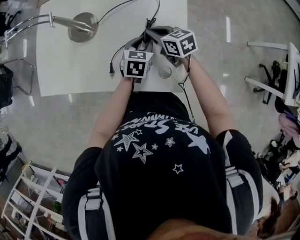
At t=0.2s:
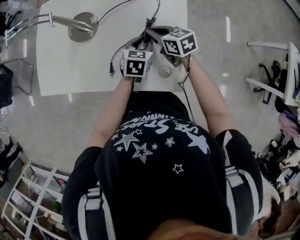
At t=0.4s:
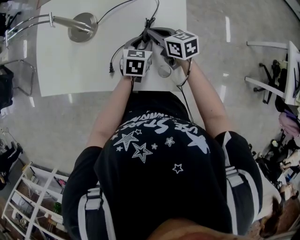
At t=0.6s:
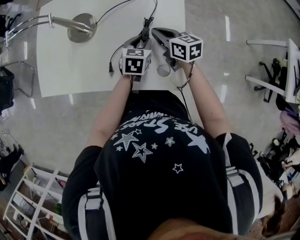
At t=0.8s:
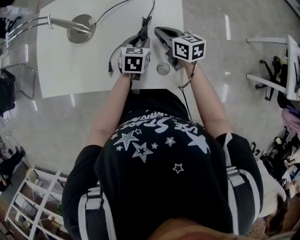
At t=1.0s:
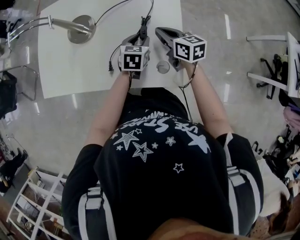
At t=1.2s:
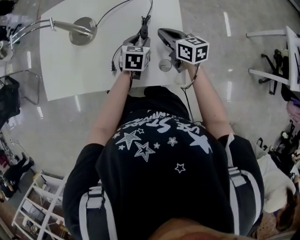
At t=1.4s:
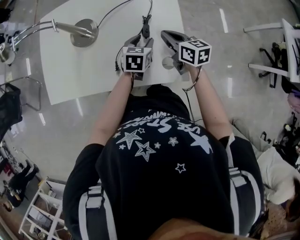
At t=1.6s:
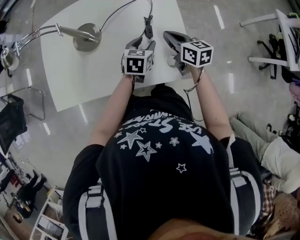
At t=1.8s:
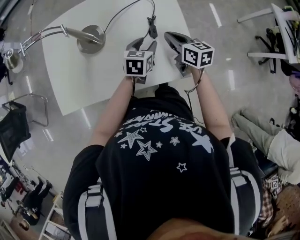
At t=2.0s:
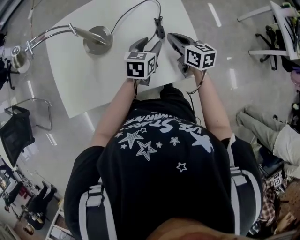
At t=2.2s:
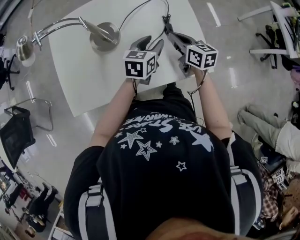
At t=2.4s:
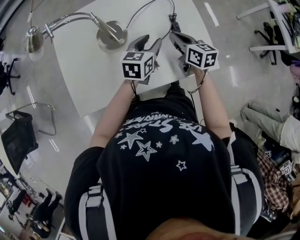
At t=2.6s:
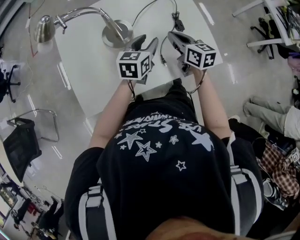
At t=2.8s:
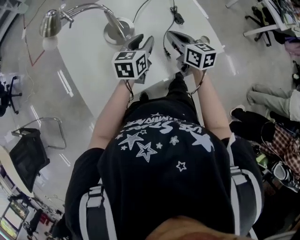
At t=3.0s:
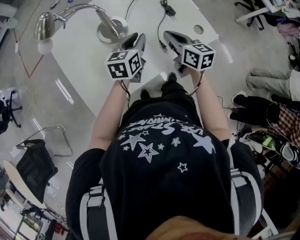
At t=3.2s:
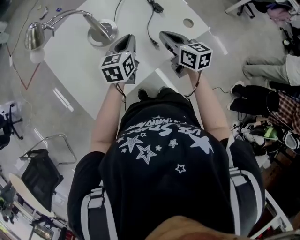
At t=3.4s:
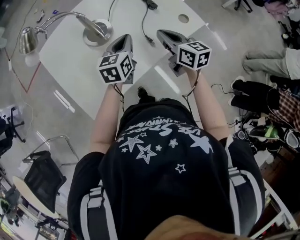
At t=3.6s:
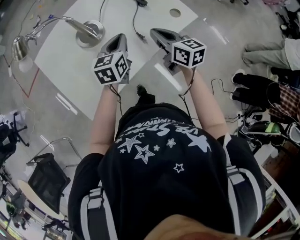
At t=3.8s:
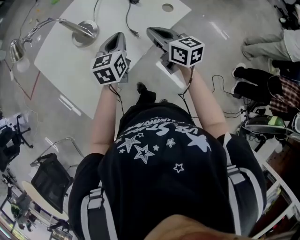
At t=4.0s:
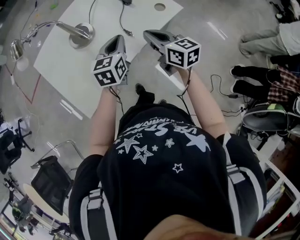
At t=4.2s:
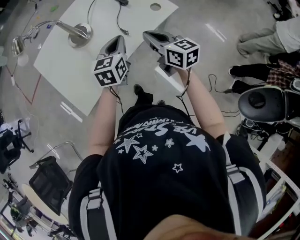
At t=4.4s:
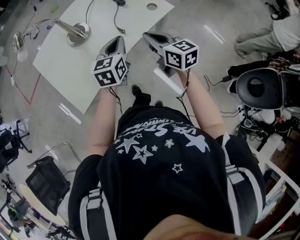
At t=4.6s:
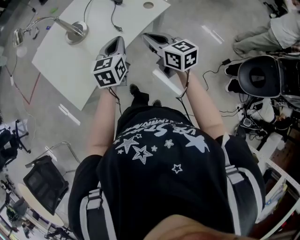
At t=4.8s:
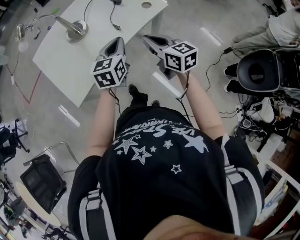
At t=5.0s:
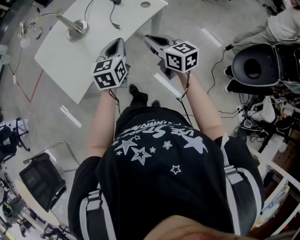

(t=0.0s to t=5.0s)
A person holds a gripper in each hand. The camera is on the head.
t=0.0s - t=1.6s: The right gripper is displaced backward by approximately 5 cm, and swivels about 30 degrees.
t=1.6s - t=3.4s: The right gripper ends up roughly 25 cm from where it was, and changes its angle by approximately 30 degrees, while the left gripper changes place by about 25 cm, turns by approximately 20 degrees, and closes up.
t=3.4s - t=5.0s: The left gripper heads backward and to the right, covering some 20 cm; the right gripper heads backward, covering about 20 cm.

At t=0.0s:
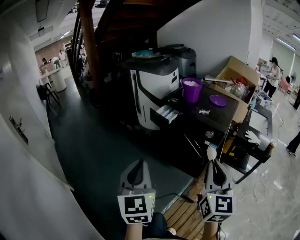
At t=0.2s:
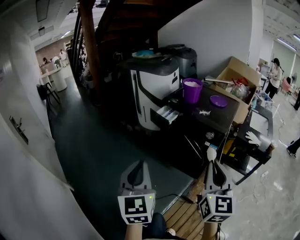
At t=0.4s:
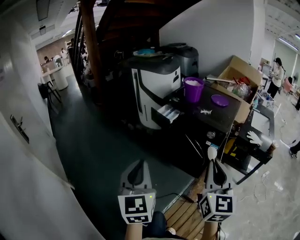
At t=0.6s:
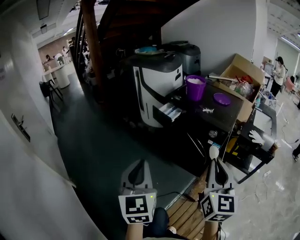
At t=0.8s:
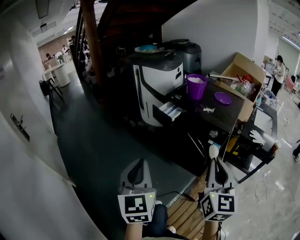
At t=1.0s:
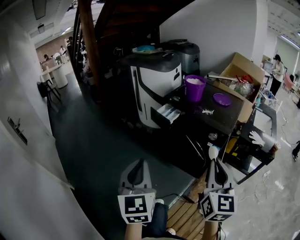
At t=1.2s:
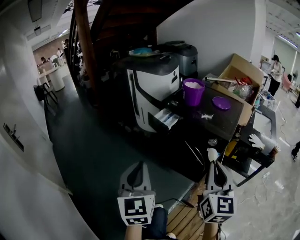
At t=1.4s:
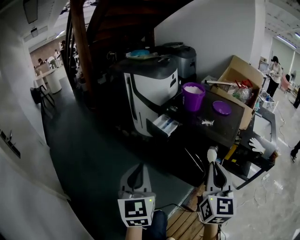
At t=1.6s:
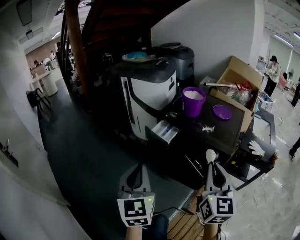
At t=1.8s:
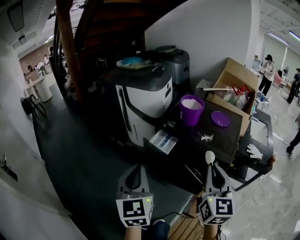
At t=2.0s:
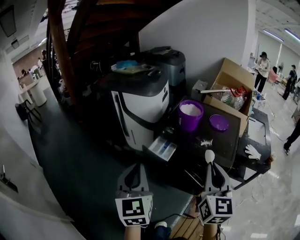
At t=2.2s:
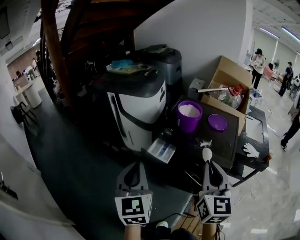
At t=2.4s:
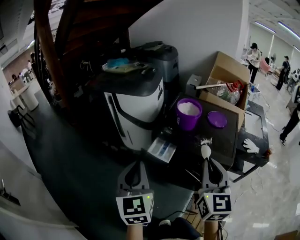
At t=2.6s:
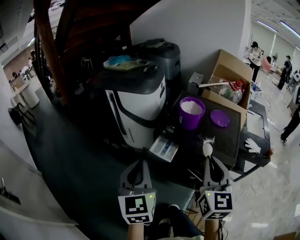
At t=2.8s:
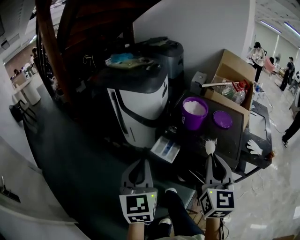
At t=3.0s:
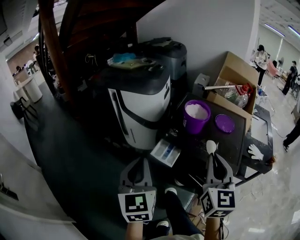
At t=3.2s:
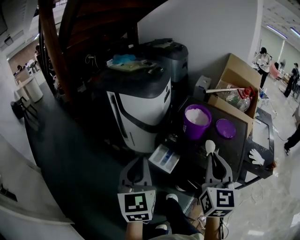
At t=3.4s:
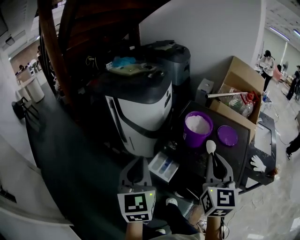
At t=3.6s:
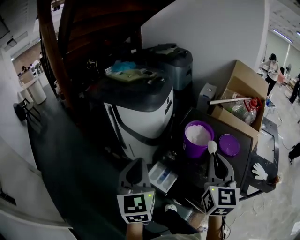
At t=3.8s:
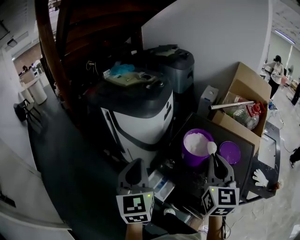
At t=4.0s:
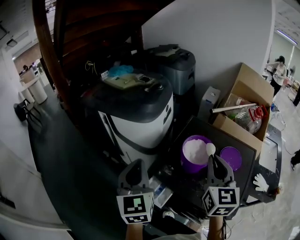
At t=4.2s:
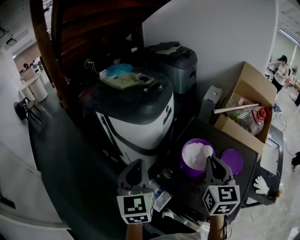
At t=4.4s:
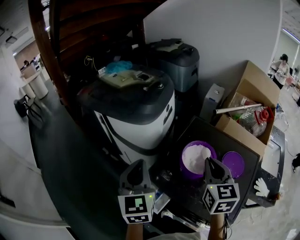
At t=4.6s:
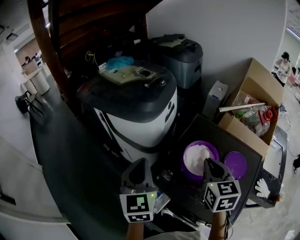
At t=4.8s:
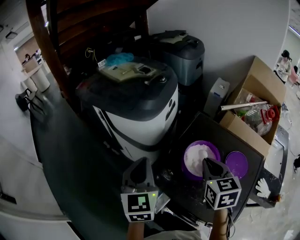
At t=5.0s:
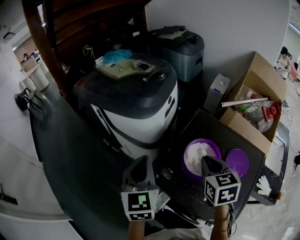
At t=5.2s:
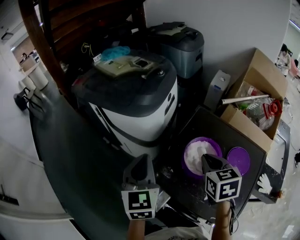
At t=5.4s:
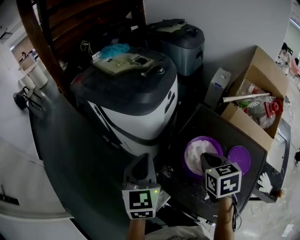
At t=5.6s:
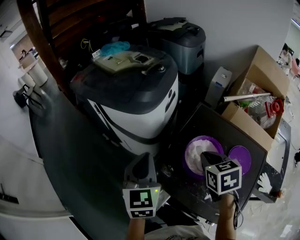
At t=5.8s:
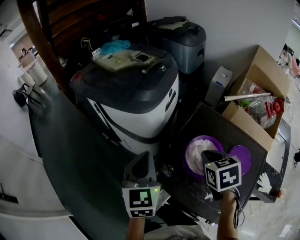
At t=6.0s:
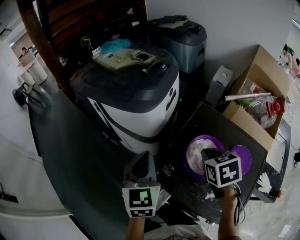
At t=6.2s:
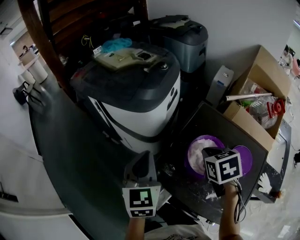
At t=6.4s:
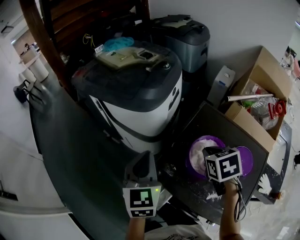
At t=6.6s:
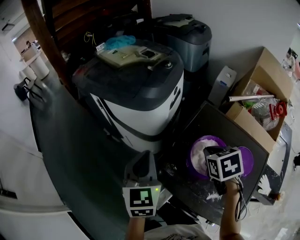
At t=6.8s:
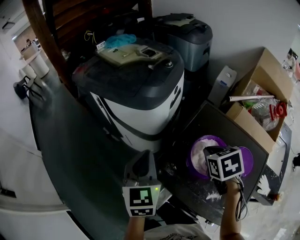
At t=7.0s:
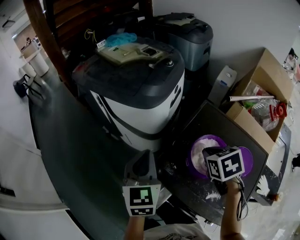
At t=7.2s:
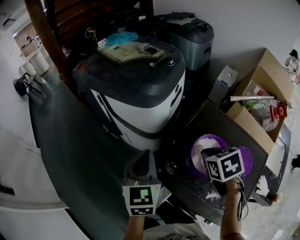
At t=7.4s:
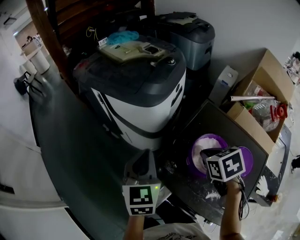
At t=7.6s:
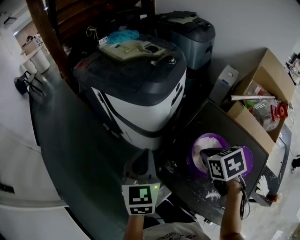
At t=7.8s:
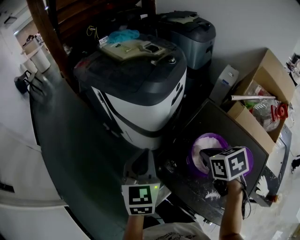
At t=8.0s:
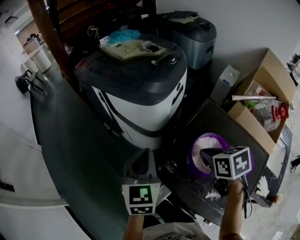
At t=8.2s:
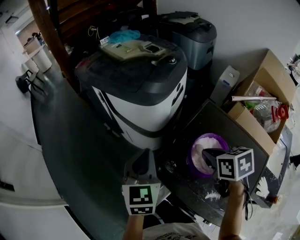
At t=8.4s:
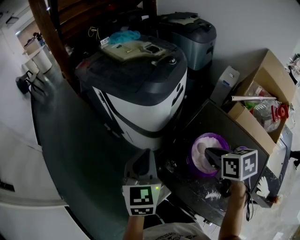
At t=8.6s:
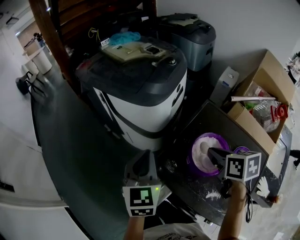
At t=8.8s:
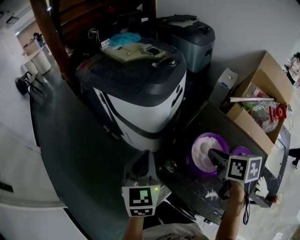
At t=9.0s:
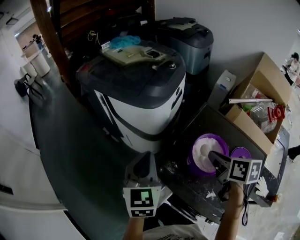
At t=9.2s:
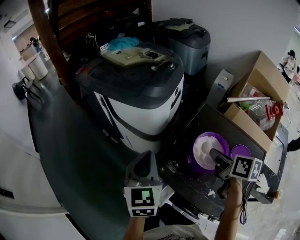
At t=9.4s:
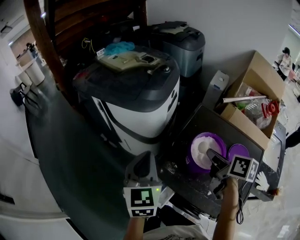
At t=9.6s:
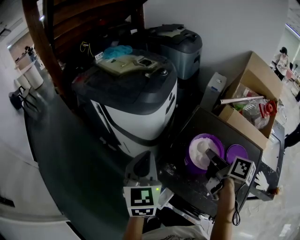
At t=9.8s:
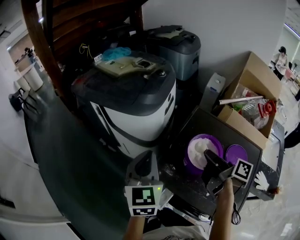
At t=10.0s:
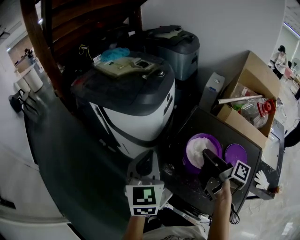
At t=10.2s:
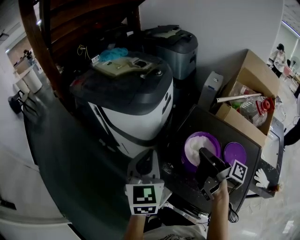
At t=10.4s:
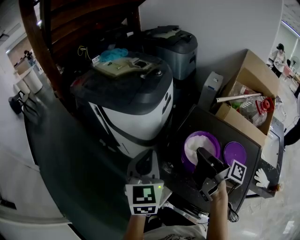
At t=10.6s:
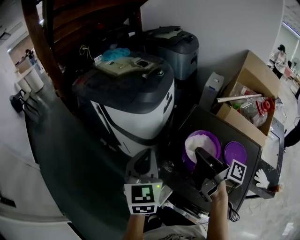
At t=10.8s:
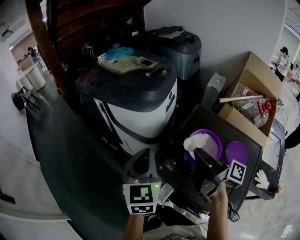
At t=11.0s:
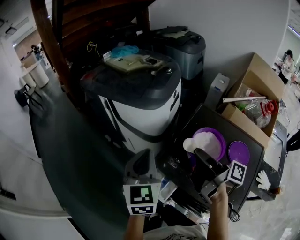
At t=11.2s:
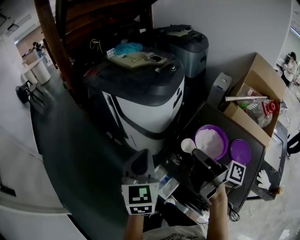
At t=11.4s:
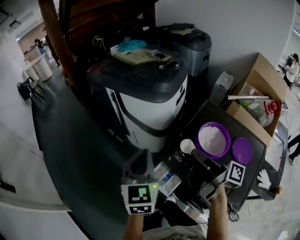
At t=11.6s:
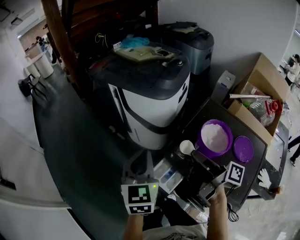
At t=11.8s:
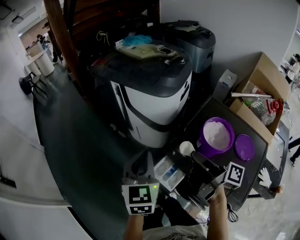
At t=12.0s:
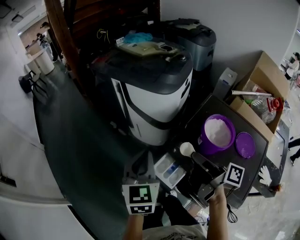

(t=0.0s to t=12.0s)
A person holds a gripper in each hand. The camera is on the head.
t=0.0s - t=1.6s: Both grippers travel together forward, some 20 cm.
t=1.6s - t=3.0s: The left gripper goes roughly 20 cm forward. Meanwhile the right gripper shifts approximately 20 cm forward and upward.
t=3.0s - t=4.4s: The grippers both shift forward by roughly 30 cm.
t=4.4s - t=6.0s: The right gripper travels downward and forward by about 10 cm, and points its fingers about 30 degrees further downward. The left gripper moves downward and forward, some 5 cm.
t=6.0s - t=7.6s: The grippers move only a little.
t=7.6s - t=9.0s: The right gripper changes its angle by about 40 degrees.
t=9.0s - t=10.4s: The right gripper tilts its fingers some 40 degrees upward.
t=10.4s - t=12.0s: Both grippers travel together to the left and backward, roughly 15 cm.

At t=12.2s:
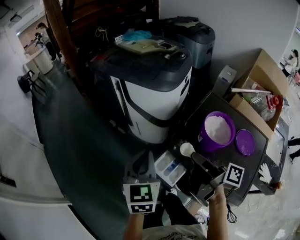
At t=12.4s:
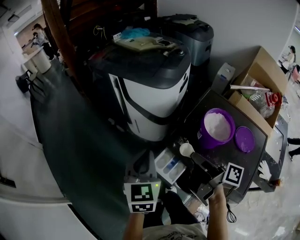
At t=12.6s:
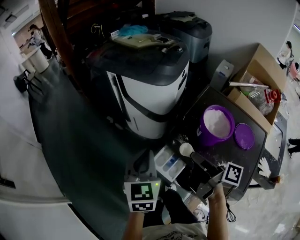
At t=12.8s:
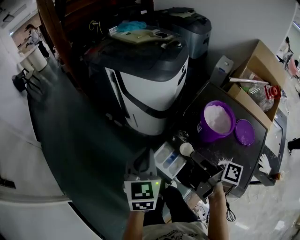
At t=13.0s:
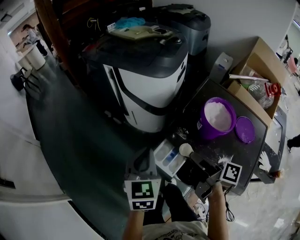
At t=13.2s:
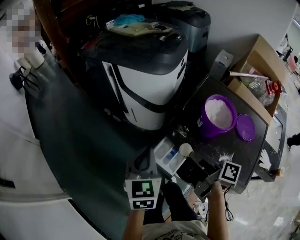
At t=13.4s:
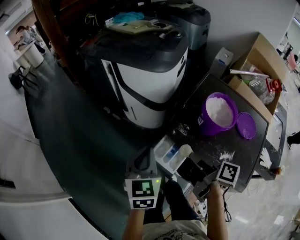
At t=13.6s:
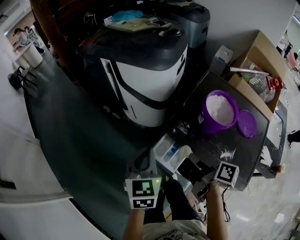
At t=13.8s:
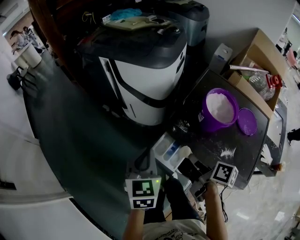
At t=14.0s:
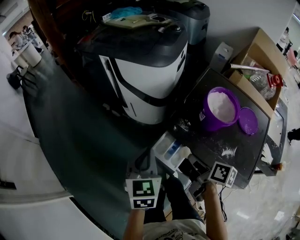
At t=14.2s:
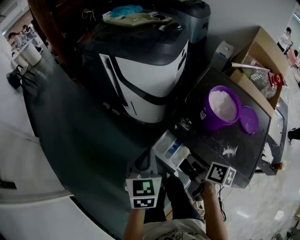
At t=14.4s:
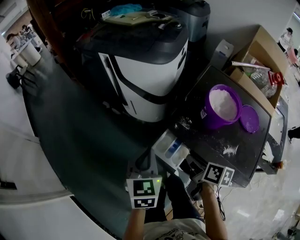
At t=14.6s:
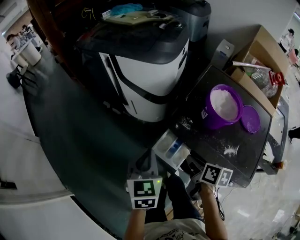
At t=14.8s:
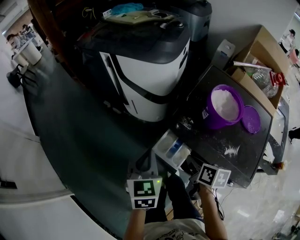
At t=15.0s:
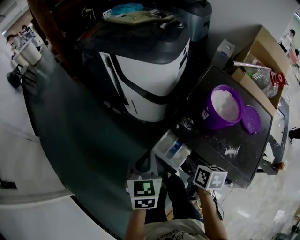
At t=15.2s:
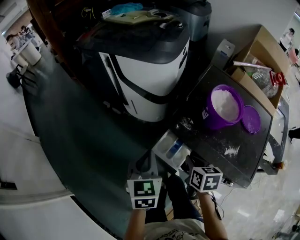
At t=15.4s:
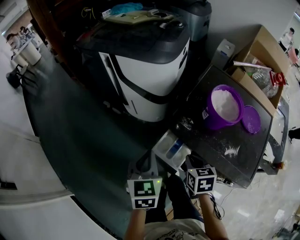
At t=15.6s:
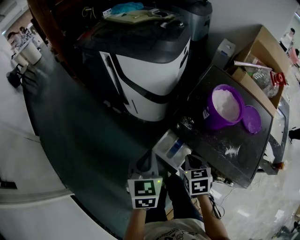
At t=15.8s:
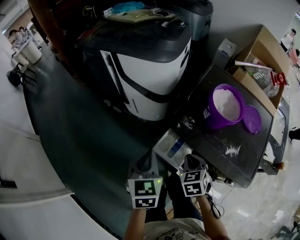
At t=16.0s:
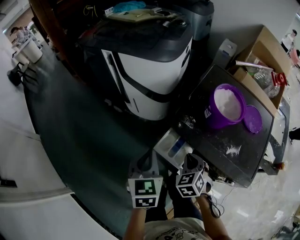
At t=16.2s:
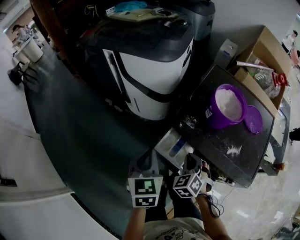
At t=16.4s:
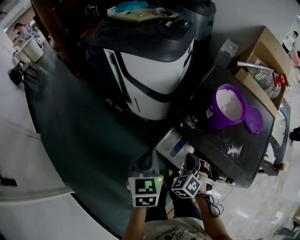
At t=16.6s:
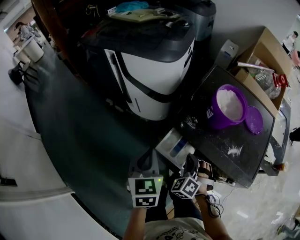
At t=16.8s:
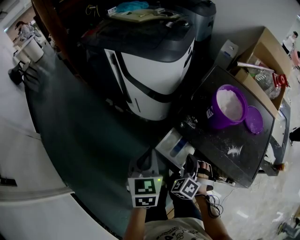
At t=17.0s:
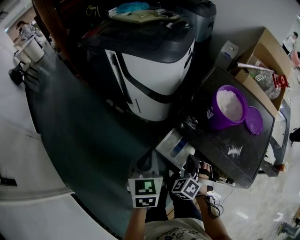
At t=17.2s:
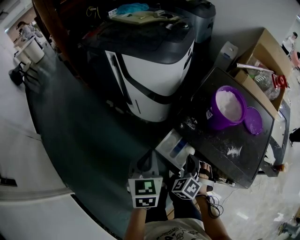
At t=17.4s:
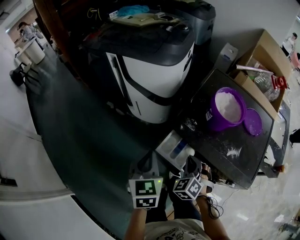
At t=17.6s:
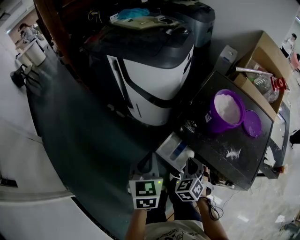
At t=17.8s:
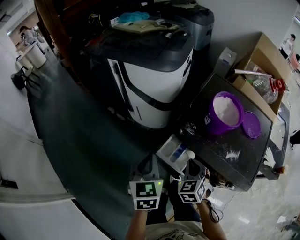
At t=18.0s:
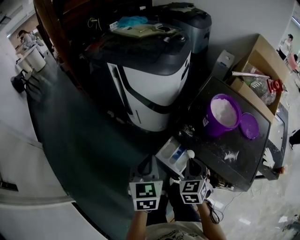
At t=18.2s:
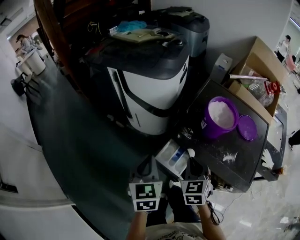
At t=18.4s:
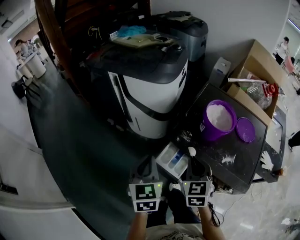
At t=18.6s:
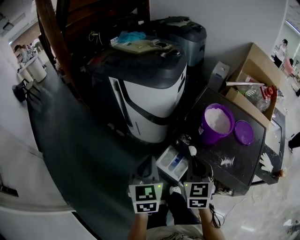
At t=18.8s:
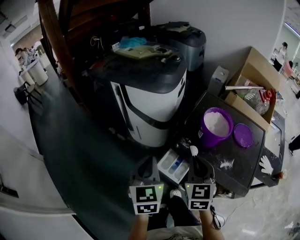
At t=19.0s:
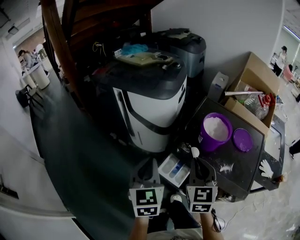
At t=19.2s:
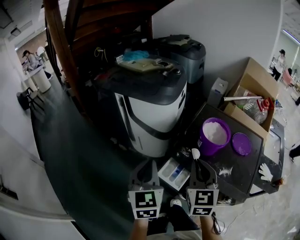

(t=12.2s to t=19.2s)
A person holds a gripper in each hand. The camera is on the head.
t=12.2s - t=13.6s: The two grippers go roughly 10 cm downward. The right gripper rotates about 20 degrees.
t=13.6s - t=15.0s: The right gripper moves downward, about 5 cm, and changes its angle by about 40 degrees.
t=15.0s - t=16.4s: The right gripper rolls counterclockwise, seen from behind, by some 70 degrees.
t=16.4s - t=17.8s: The right gripper turns by some 20 degrees.
t=17.8s - t=19.2s: The left gripper travels upward by about 10 cm, while the right gripper shifts roughly 20 cm upward, and swivels roughly 30 degrees.
